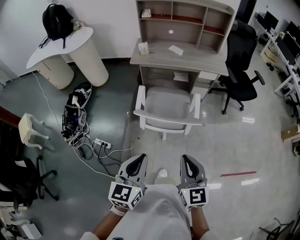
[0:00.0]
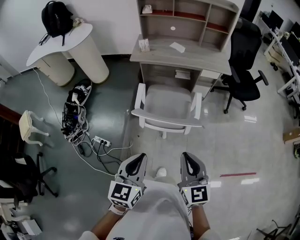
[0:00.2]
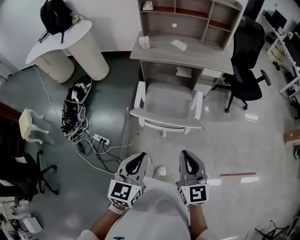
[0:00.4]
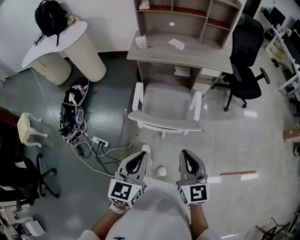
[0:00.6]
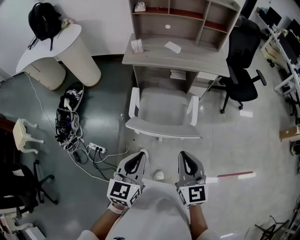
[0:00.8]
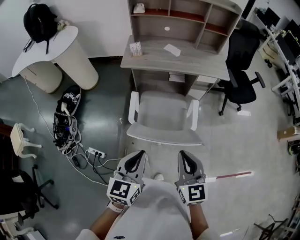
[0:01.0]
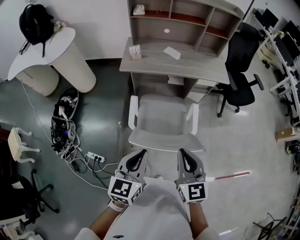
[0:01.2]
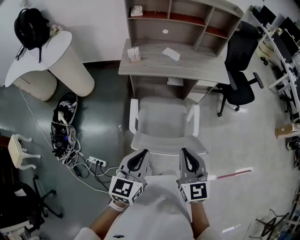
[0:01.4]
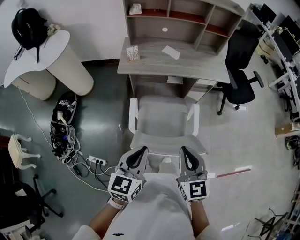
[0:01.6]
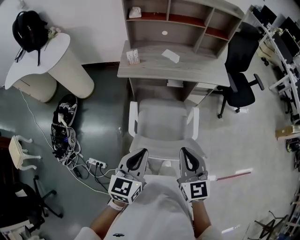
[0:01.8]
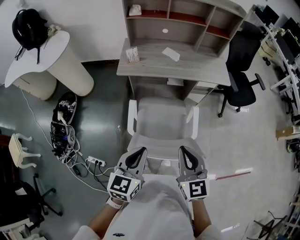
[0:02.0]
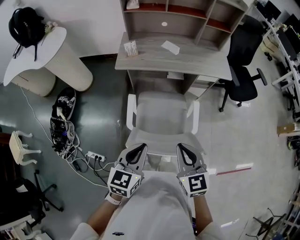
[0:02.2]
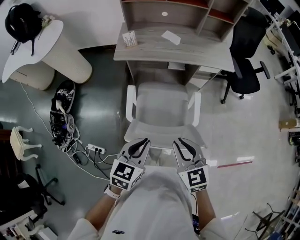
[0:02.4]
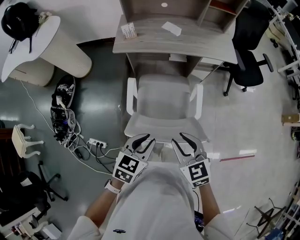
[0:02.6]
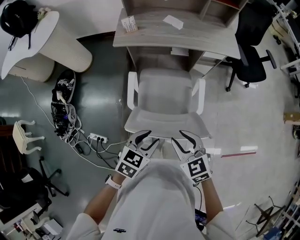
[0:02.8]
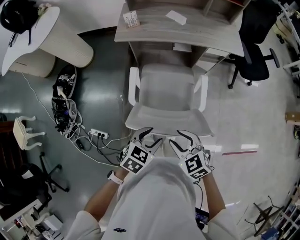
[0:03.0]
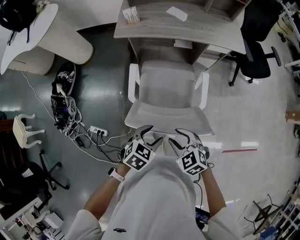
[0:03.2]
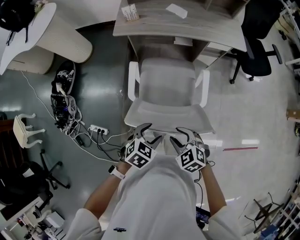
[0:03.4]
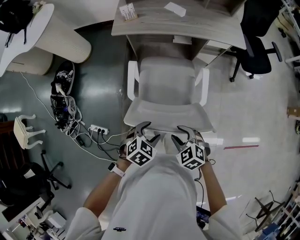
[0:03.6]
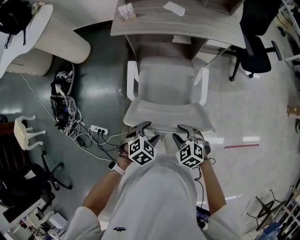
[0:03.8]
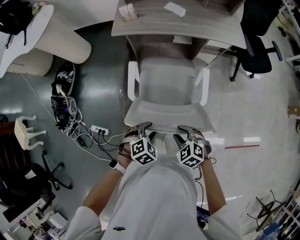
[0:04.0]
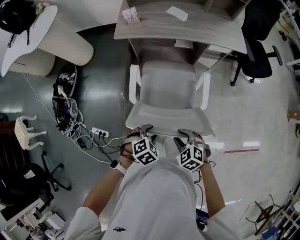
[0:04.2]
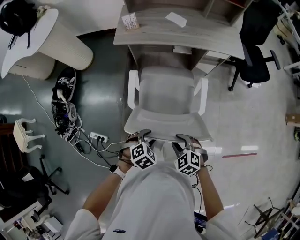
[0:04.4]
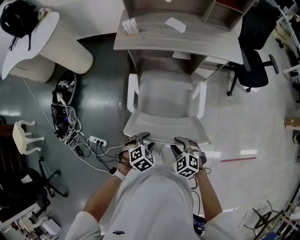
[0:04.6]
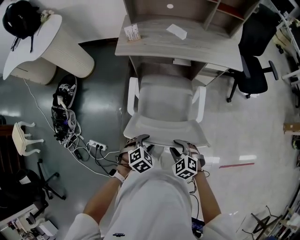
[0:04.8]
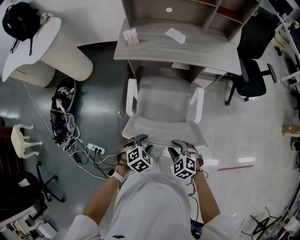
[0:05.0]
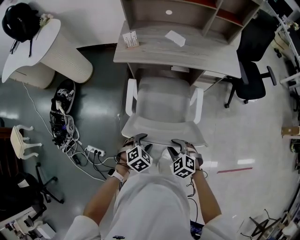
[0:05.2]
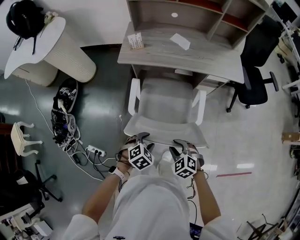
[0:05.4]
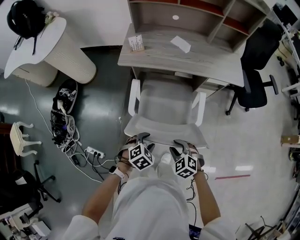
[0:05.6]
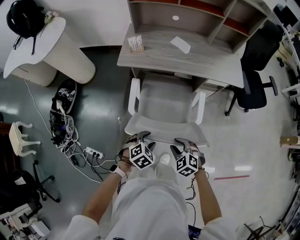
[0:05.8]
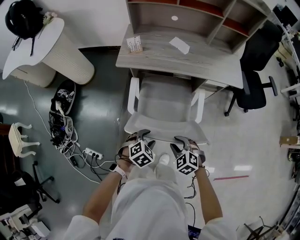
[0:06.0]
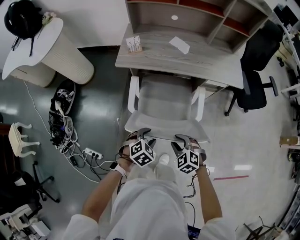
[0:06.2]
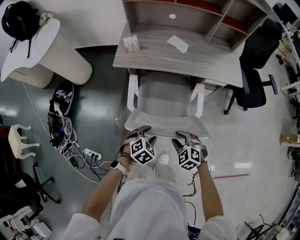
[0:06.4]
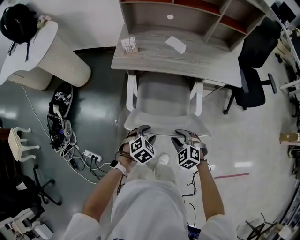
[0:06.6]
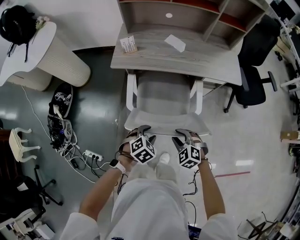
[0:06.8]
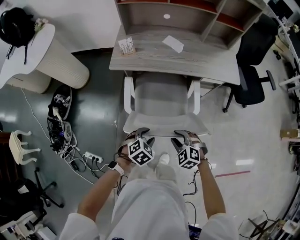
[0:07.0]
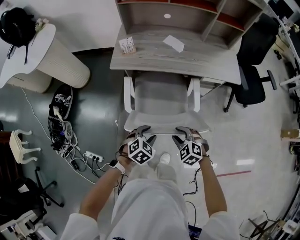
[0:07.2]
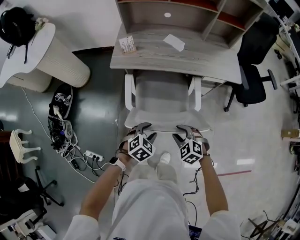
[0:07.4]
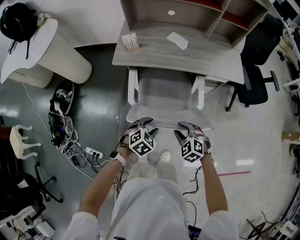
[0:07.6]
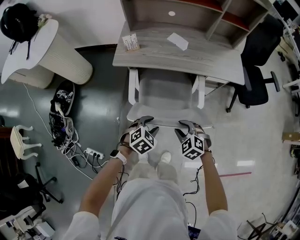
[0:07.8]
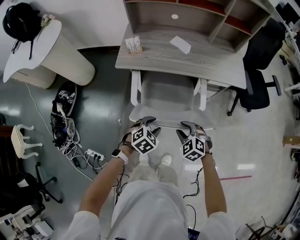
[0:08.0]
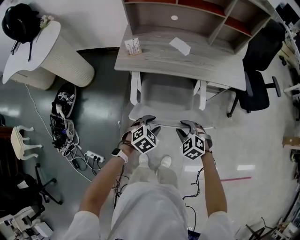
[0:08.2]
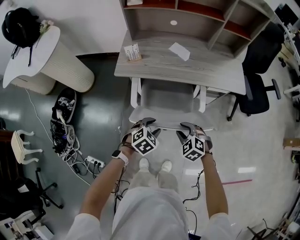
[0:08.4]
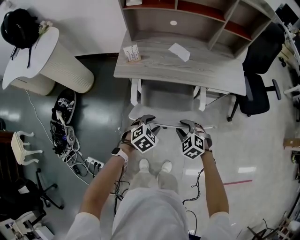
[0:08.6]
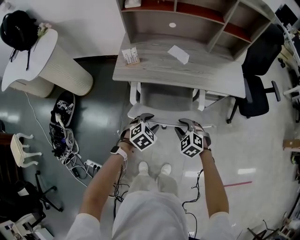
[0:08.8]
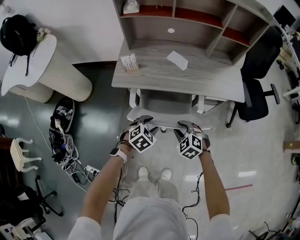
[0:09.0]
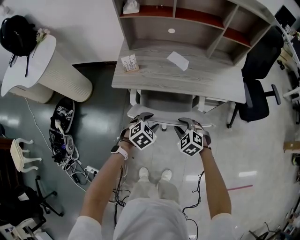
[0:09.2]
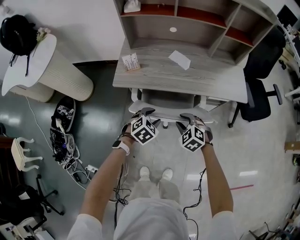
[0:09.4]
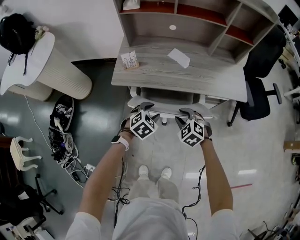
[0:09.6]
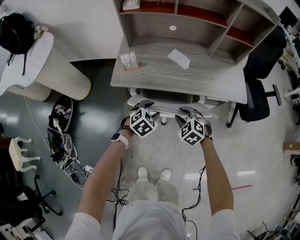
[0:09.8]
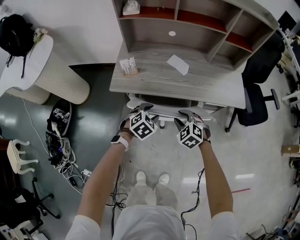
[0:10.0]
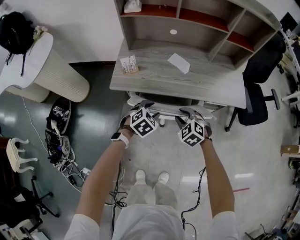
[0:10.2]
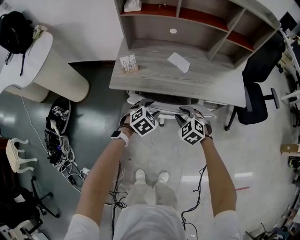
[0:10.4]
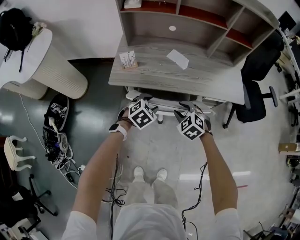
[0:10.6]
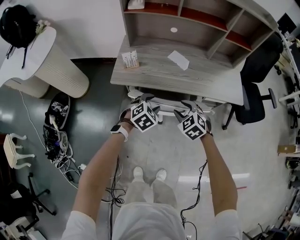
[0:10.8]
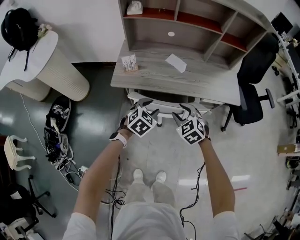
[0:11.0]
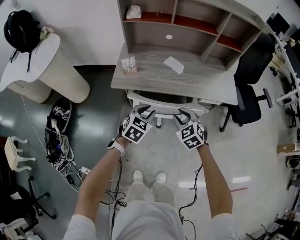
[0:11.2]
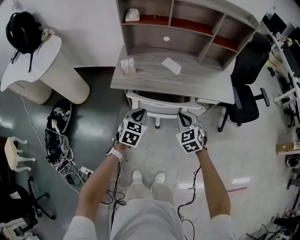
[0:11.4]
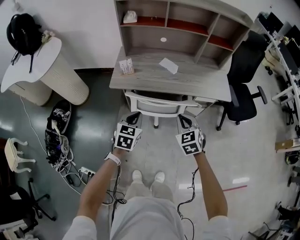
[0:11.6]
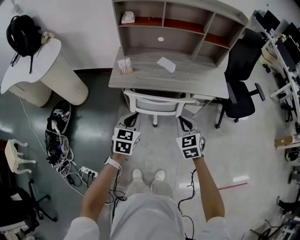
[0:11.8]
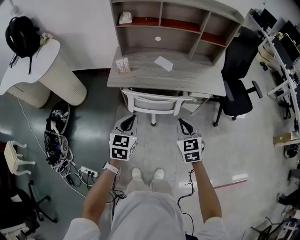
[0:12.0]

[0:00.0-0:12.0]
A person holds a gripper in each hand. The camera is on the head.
0:00.0 to 0:01.6: The grippers both shift forward by roughly 25 cm.
0:01.6 to 0:03.0: The right gripper is displaced downward by about 15 cm, turns by approximately 40 degrees, and opens up, while the left gripper heads downward and to the right, covering some 20 cm, swivels about 40 degrees, and opens its fingers.
0:03.0 to 0:04.4: Both grippers travel together downward, roughly 10 cm. The left gripper rotates approximately 30 degrees.
0:04.4 to 0:06.0: Both grippers travel together forward, roughly 15 cm.
0:06.0 to 0:07.6: Both grippers move forward, approximately 5 cm.
0:07.6 to 0:09.0: Both grippers travel together forward, roughly 15 cm.
0:09.0 to 0:10.4: The two grippers go some 10 cm forward.
0:10.4 to 0:12.0: The two grippers go roughly 25 cm backward and upward. The right gripper changes its angle by approximately 40 degrees, and closes up; the left gripper changes its angle by some 40 degrees, and closes up.

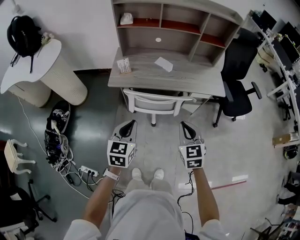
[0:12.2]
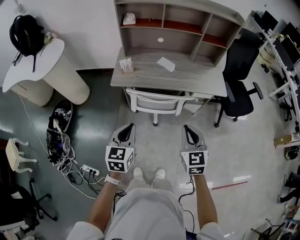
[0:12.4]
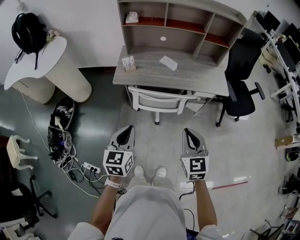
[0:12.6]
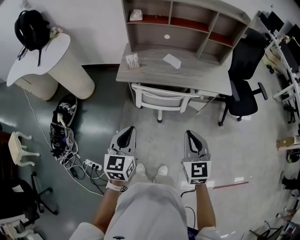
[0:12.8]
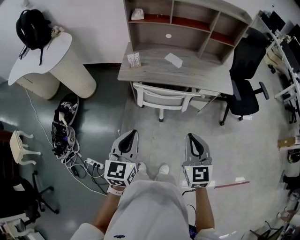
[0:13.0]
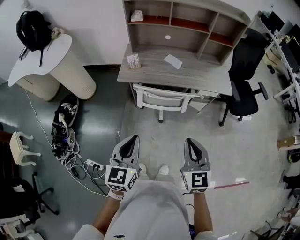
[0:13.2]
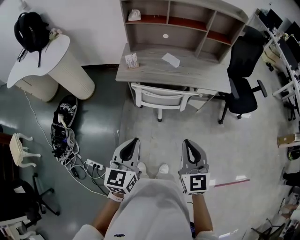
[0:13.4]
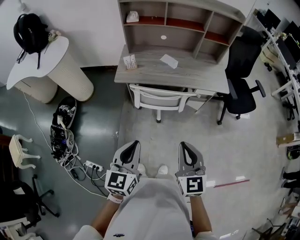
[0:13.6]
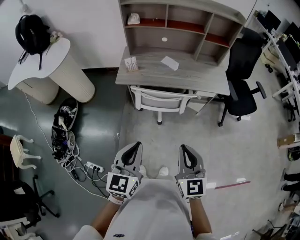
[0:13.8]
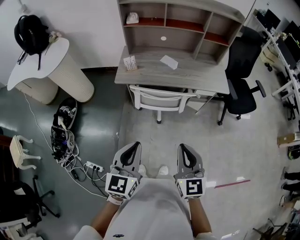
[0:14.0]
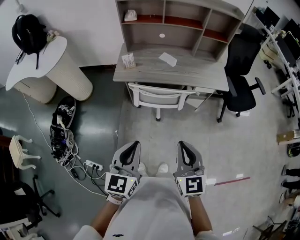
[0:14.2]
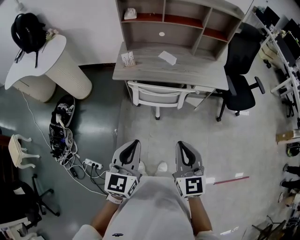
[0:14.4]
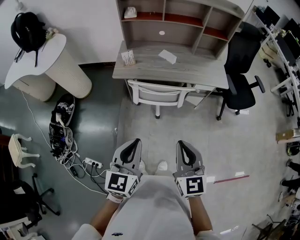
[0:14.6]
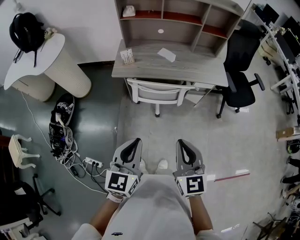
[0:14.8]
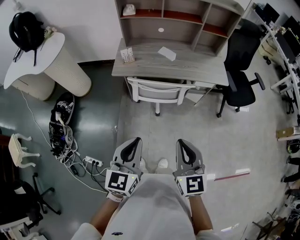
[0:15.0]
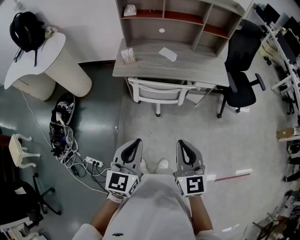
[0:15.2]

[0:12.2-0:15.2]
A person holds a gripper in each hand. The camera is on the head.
0:12.2 to 0:13.8: The grippers both shift backward and upward by approximately 15 cm.
0:13.8 to 0:15.2: The grippers make only small movements.

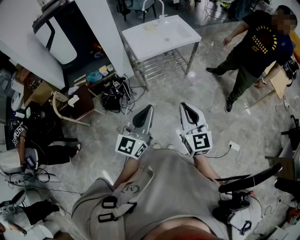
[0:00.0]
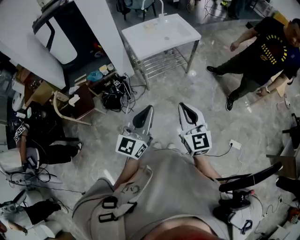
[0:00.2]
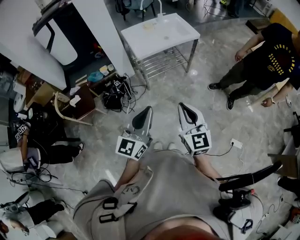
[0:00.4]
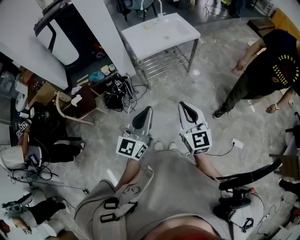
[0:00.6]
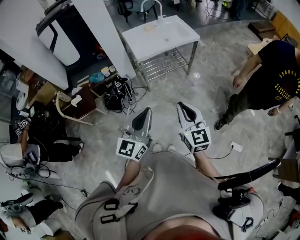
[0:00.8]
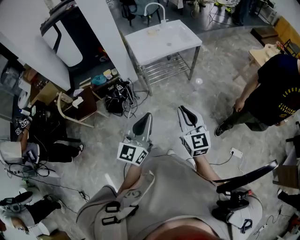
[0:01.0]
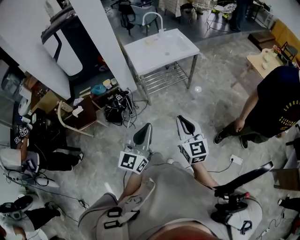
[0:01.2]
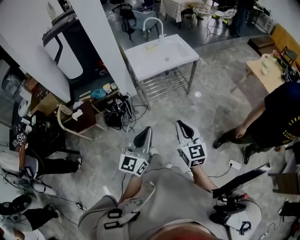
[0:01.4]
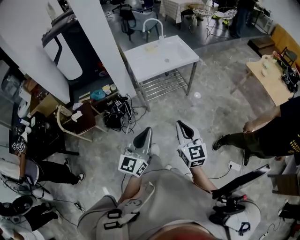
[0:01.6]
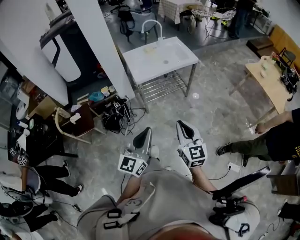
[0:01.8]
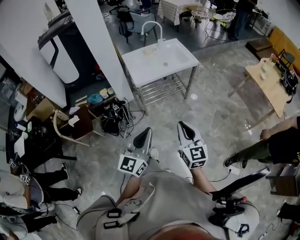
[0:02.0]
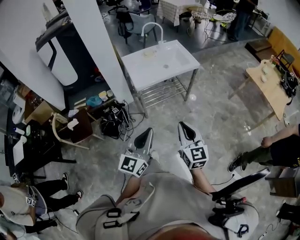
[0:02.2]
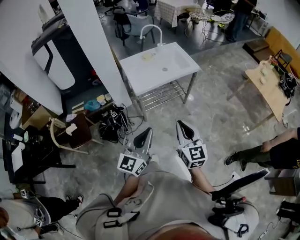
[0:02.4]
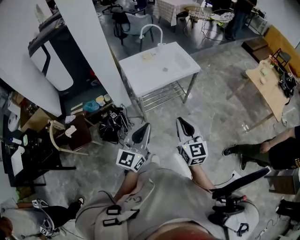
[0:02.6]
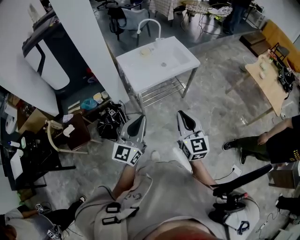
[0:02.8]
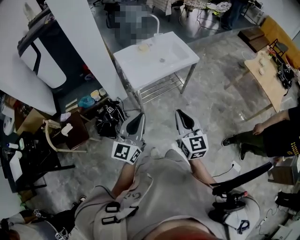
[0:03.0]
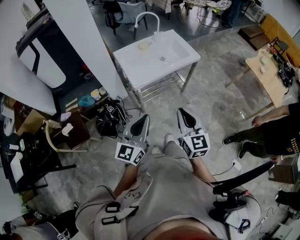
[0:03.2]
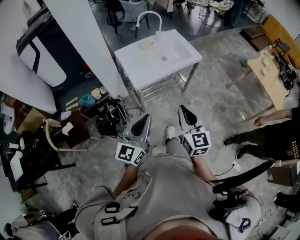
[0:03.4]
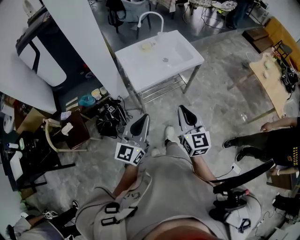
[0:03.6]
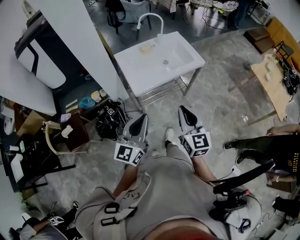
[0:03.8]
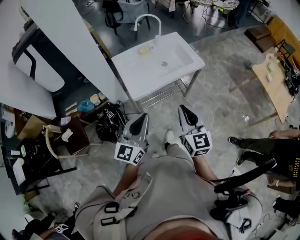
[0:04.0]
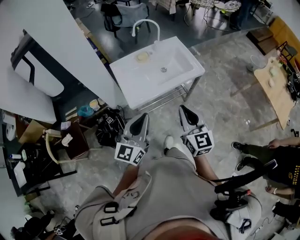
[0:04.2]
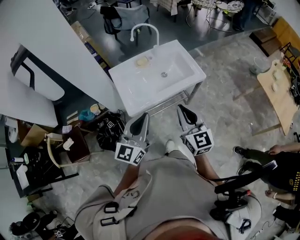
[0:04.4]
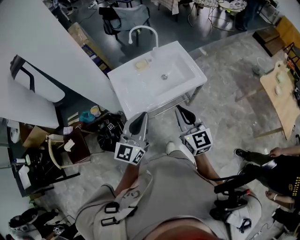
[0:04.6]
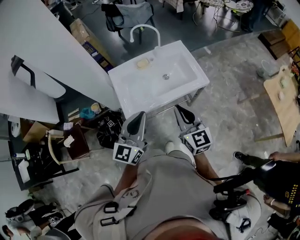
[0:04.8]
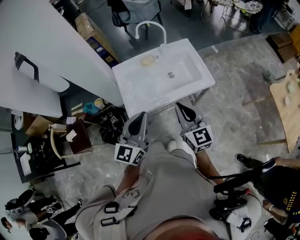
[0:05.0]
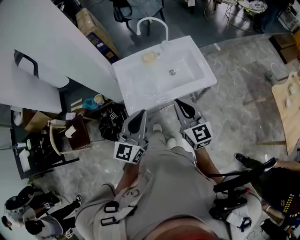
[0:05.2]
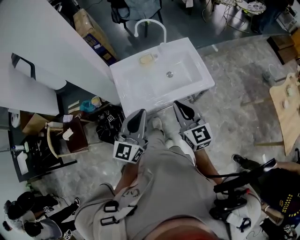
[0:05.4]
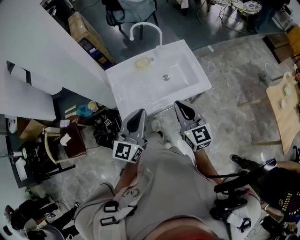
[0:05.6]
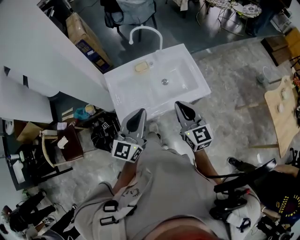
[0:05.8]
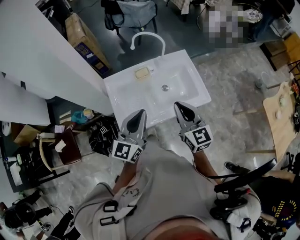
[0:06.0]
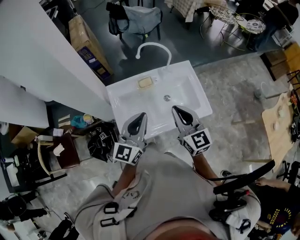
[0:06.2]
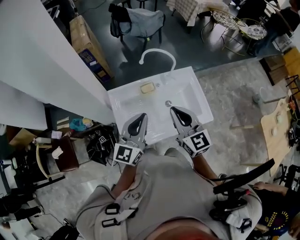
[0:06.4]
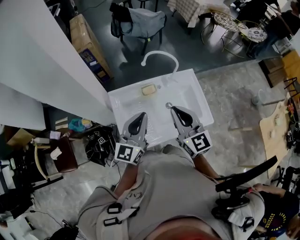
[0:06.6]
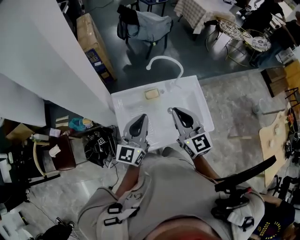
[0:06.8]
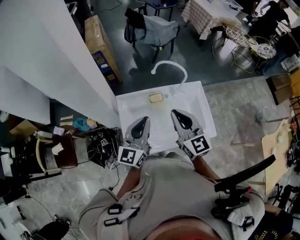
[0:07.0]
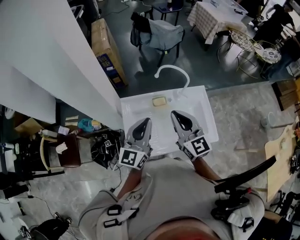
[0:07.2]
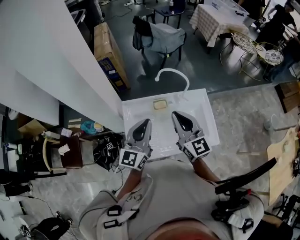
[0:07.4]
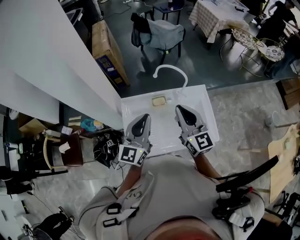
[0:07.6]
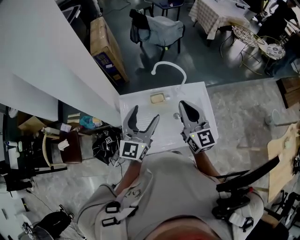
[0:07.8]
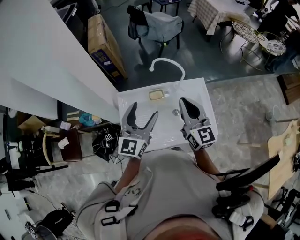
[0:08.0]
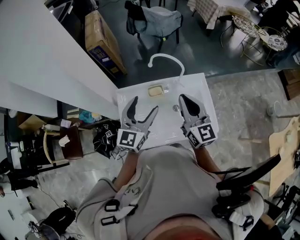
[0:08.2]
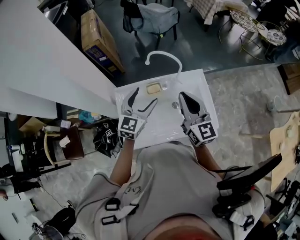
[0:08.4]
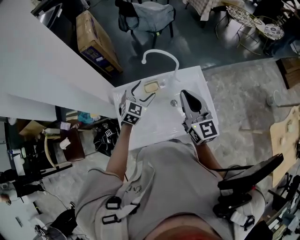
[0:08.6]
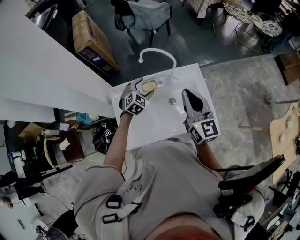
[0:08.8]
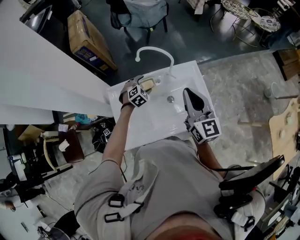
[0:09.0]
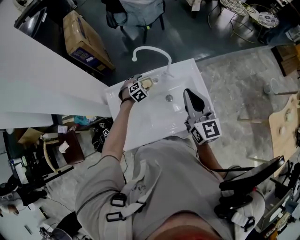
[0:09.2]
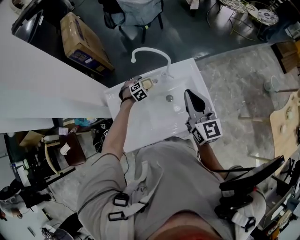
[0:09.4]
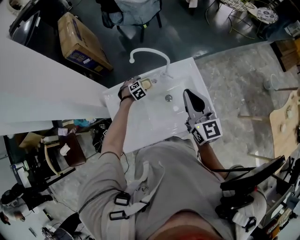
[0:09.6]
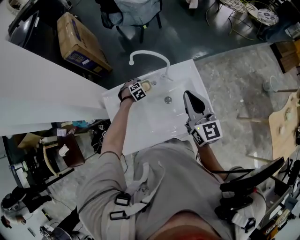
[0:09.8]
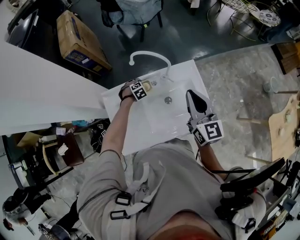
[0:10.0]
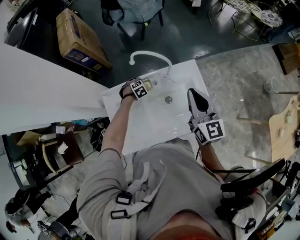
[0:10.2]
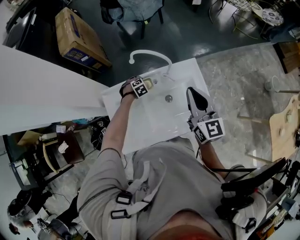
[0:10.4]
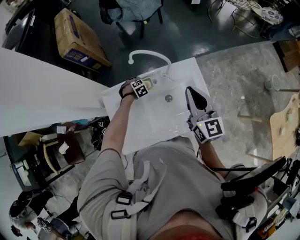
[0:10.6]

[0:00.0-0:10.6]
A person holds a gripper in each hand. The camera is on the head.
0:00.0 to 0:01.6: Both grippers travel together to the right, approximately 5 cm.
0:01.6 to 0:03.0: Both grippers travel together forward and to the left, some 25 cm.
0:03.0 to 0:04.6: Both grippers travel together forward, approximately 30 cm.
0:04.6 to 0:06.0: The two grippers go roughly 20 cm forward.
0:06.0 to 0:07.6: The left gripper moves forward, some 15 cm; the right gripper moves forward and upward, about 20 cm.
0:07.6 to 0:09.0: The left gripper shifts about 35 cm downward and forward, angles its fingers downward, by about 60 degrees, and opens up. The right gripper goes about 10 cm to the right.
0:09.0 to 0:10.6: The right gripper changes place by roughly 5 cm. Meanwhile the left gripper is displaced downward by roughly 15 cm, and turns by some 30 degrees.
